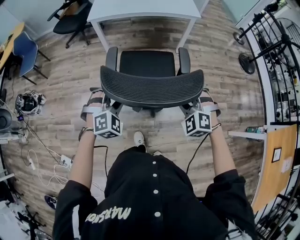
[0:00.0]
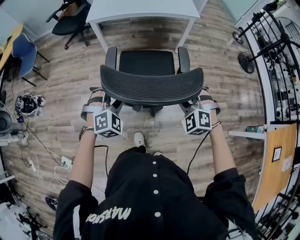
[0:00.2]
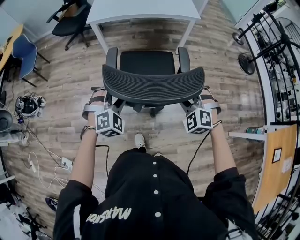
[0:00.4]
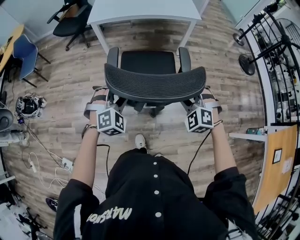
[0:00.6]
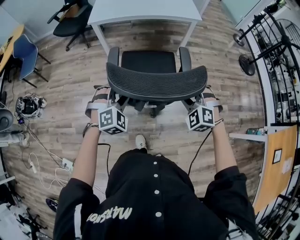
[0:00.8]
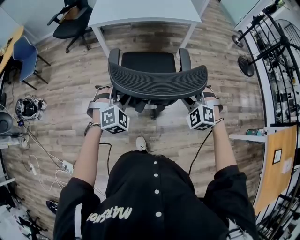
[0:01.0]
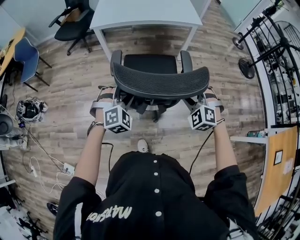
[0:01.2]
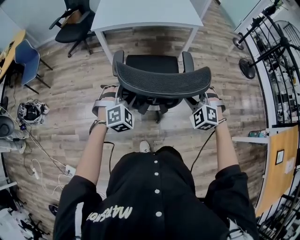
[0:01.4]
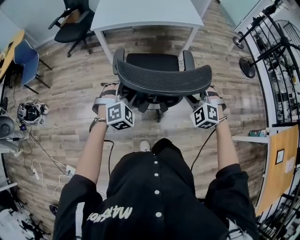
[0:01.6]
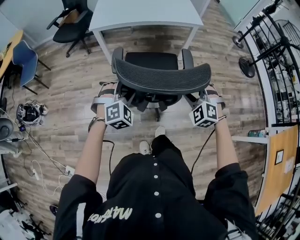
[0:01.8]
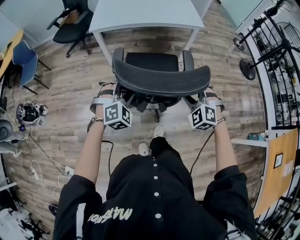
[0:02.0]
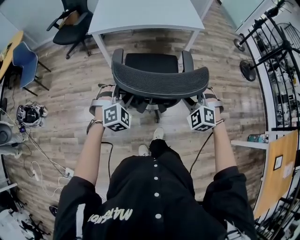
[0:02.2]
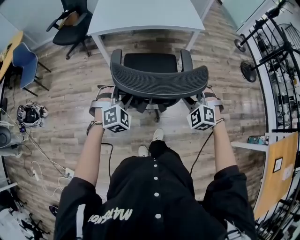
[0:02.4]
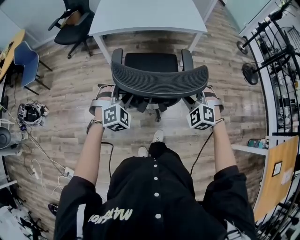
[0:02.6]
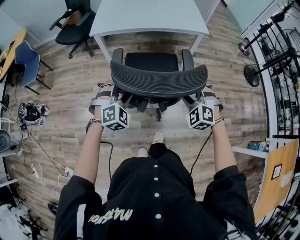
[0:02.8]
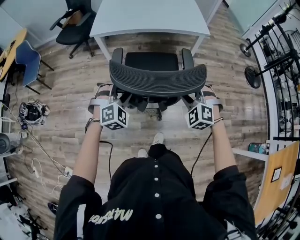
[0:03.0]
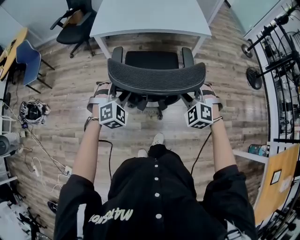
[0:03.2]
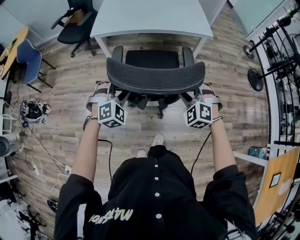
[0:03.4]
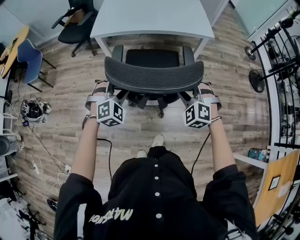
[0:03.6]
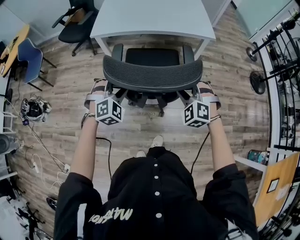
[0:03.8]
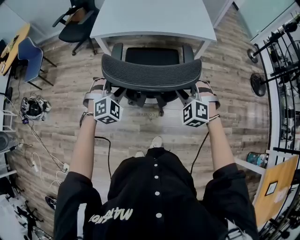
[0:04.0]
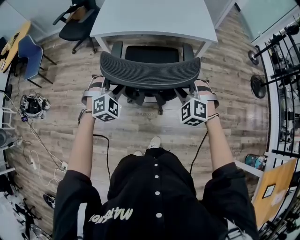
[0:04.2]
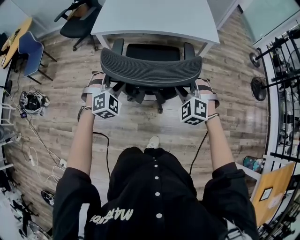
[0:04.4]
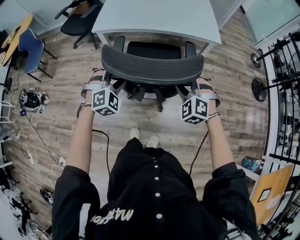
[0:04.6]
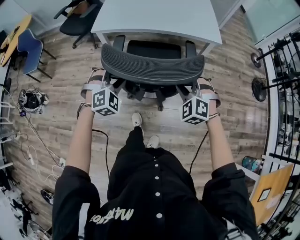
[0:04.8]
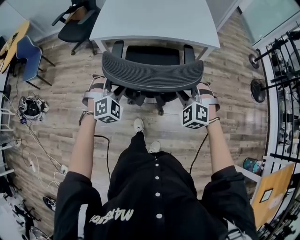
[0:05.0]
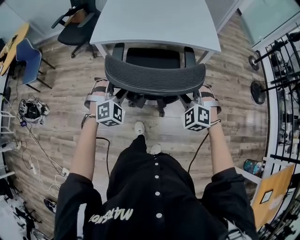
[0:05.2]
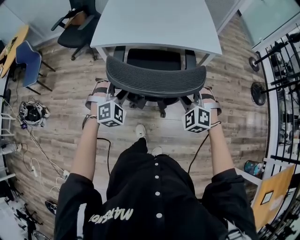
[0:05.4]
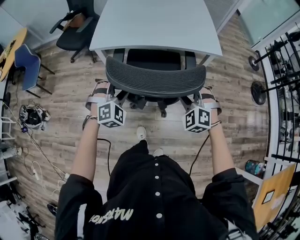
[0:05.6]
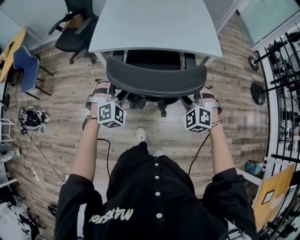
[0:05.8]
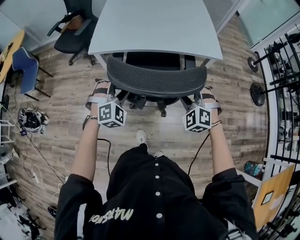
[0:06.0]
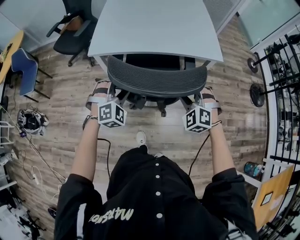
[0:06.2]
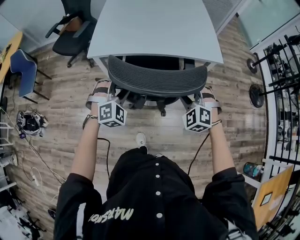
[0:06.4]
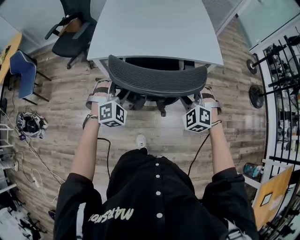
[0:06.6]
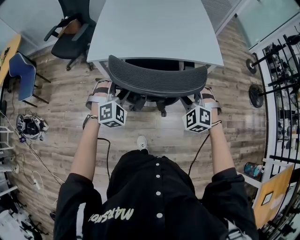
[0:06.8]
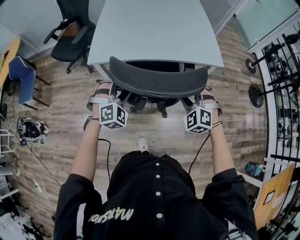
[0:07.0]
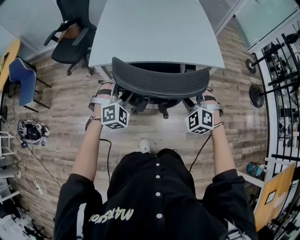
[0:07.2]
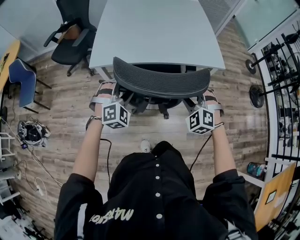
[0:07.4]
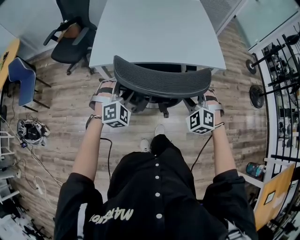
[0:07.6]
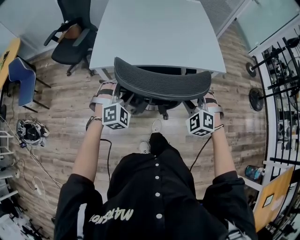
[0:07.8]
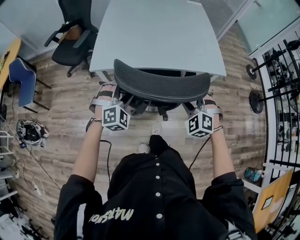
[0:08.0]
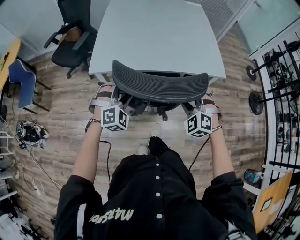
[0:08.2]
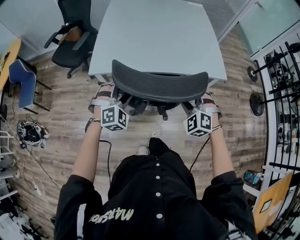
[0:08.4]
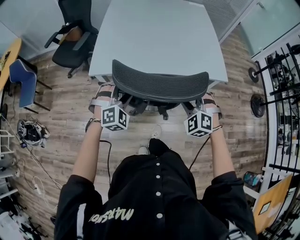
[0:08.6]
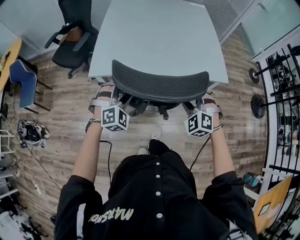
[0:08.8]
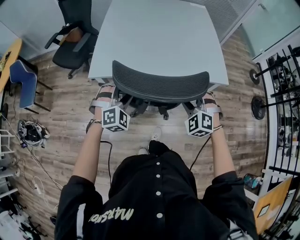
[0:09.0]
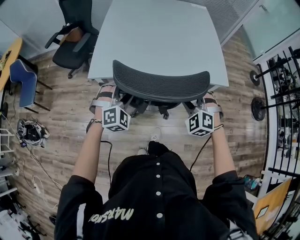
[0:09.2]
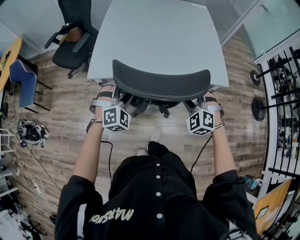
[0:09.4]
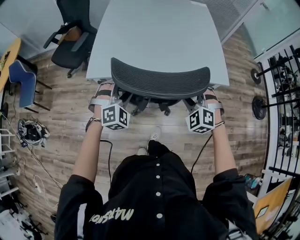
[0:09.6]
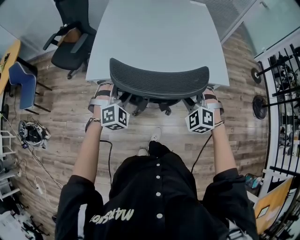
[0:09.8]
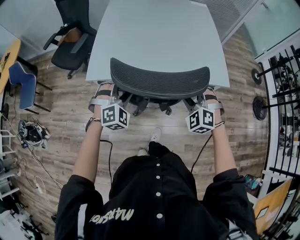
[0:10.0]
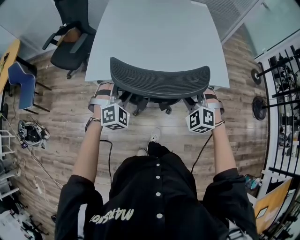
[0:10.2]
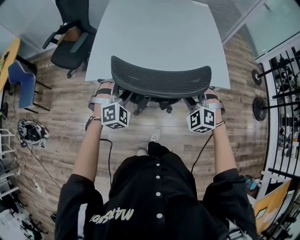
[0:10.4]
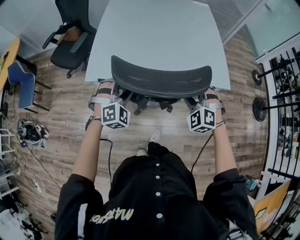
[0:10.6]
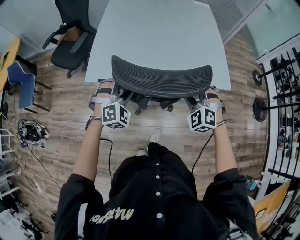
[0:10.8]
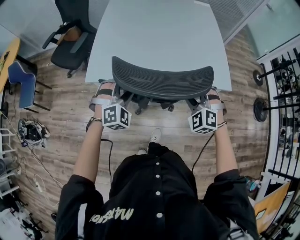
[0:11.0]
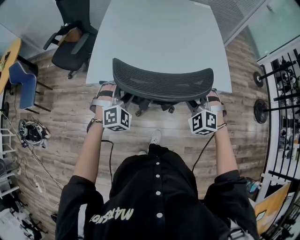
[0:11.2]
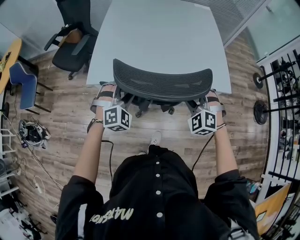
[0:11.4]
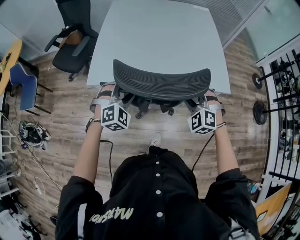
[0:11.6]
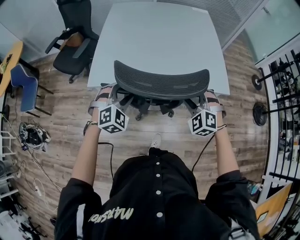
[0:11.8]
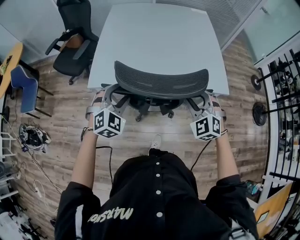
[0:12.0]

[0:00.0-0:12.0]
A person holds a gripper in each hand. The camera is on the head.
0:00.0 to 0:01.6: The two grippers go about 10 cm forward.
0:01.6 to 0:03.0: Both grippers move forward, some 10 cm.
0:03.0 to 0:04.4: The grippers both shift forward by about 10 cm.
0:04.4 to 0:06.0: The two grippers go roughly 10 cm forward.
0:06.0 to 0:07.6: The grippers both shift forward by about 5 cm.
0:07.6 to 0:09.0: The two grippers go some 5 cm forward.
0:09.0 to 0:10.4: The left gripper ends up roughly 5 cm from where it was. The right gripper is displaced forward by about 5 cm.
0:10.4 to 0:12.0: The grippers move only a little.

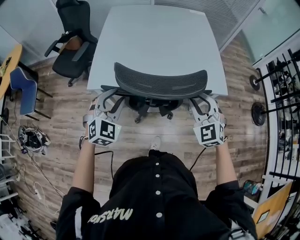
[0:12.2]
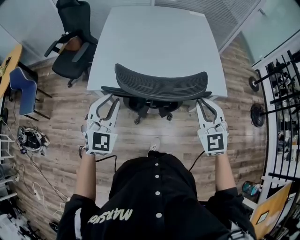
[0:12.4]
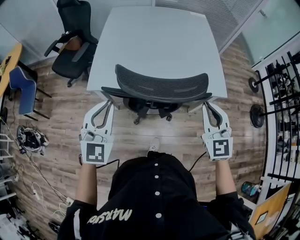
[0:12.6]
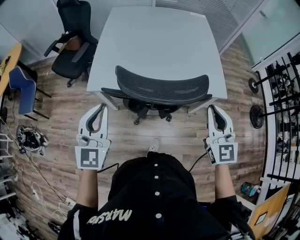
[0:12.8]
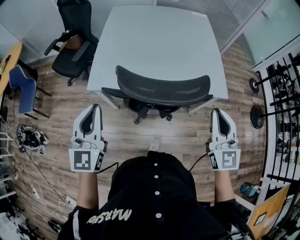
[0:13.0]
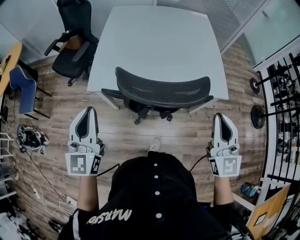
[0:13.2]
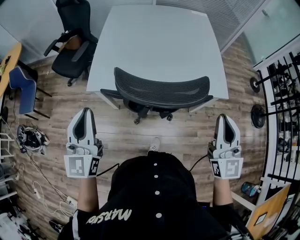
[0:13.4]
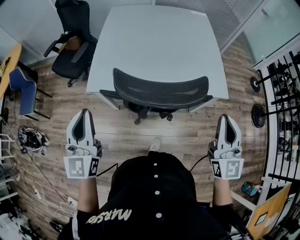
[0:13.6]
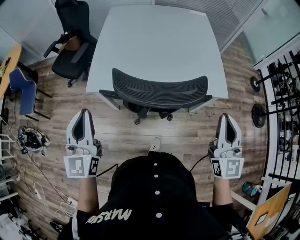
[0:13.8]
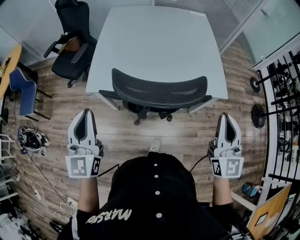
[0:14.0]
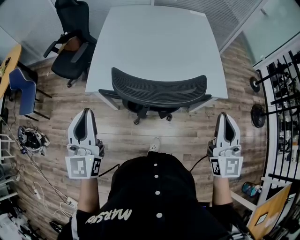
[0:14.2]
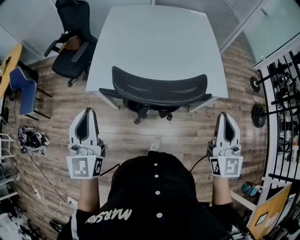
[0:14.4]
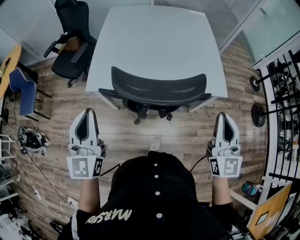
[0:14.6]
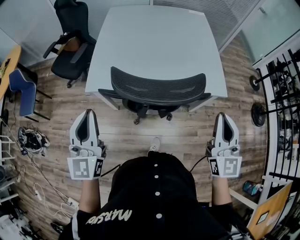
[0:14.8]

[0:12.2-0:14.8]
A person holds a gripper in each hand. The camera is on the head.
0:12.2 to 0:13.4: The left gripper heads upward, to the left and backward, covering approximately 15 cm, swivels some 50 degrees, and closes its fingers, while the right gripper travels upward, backward and to the right by roughly 15 cm, and swivels roughly 40 degrees.
0:13.4 to 0:14.8: There are only small adjustments of the grippers.

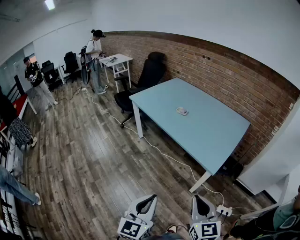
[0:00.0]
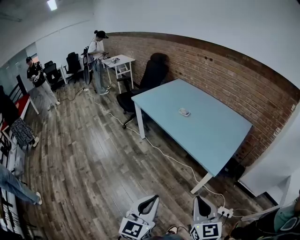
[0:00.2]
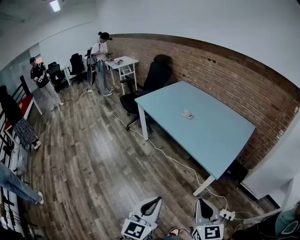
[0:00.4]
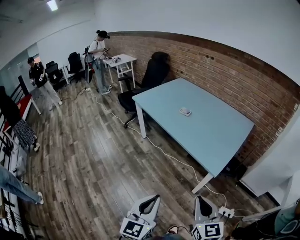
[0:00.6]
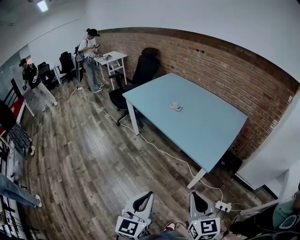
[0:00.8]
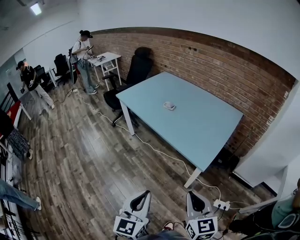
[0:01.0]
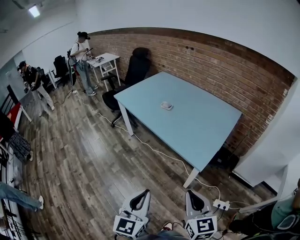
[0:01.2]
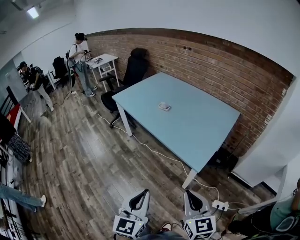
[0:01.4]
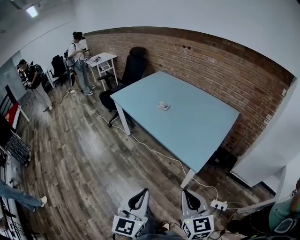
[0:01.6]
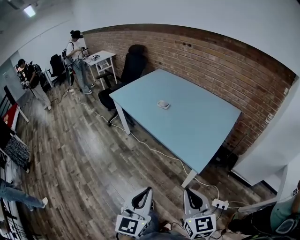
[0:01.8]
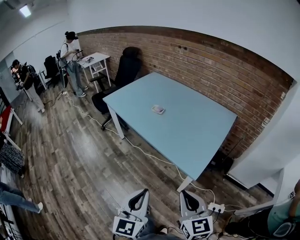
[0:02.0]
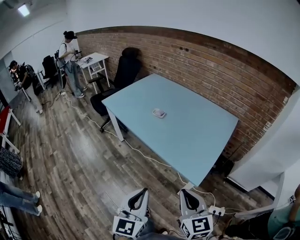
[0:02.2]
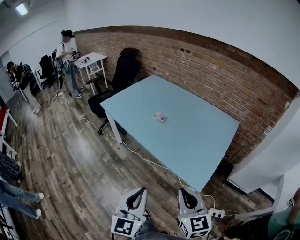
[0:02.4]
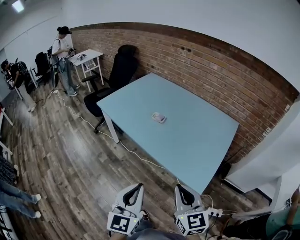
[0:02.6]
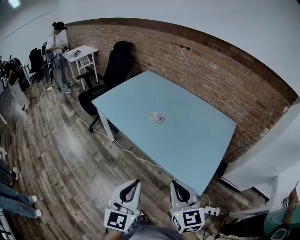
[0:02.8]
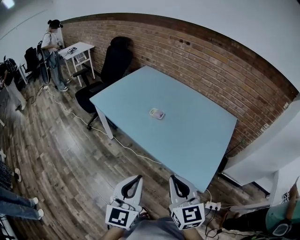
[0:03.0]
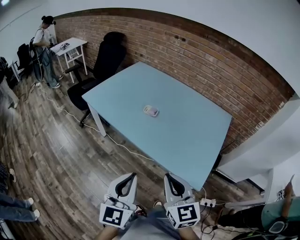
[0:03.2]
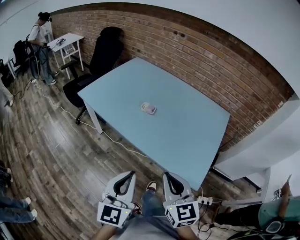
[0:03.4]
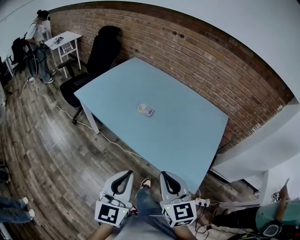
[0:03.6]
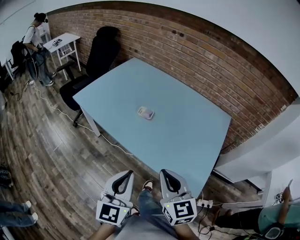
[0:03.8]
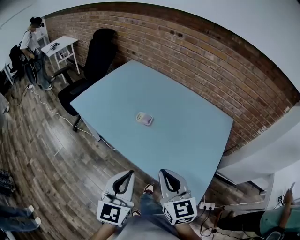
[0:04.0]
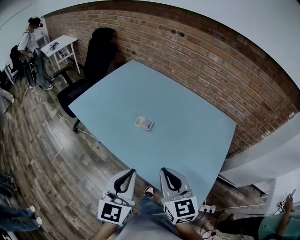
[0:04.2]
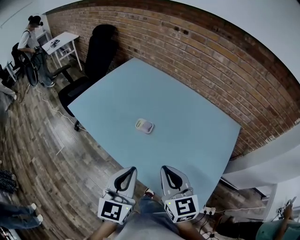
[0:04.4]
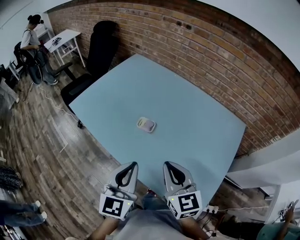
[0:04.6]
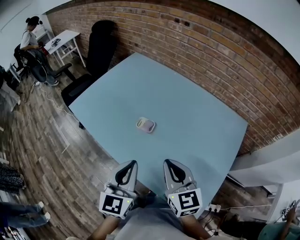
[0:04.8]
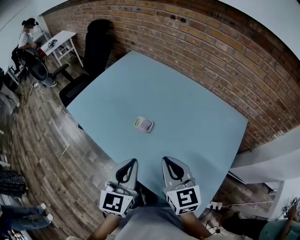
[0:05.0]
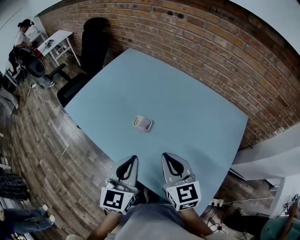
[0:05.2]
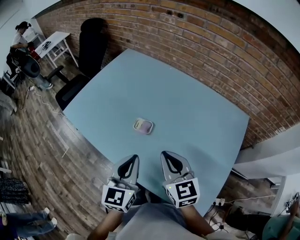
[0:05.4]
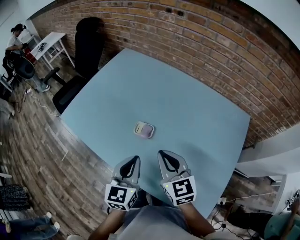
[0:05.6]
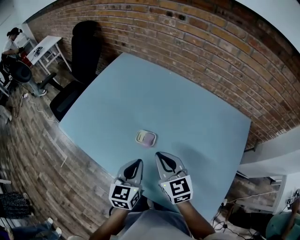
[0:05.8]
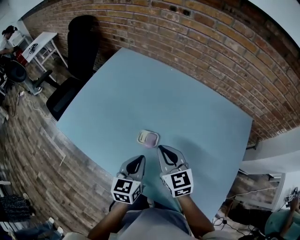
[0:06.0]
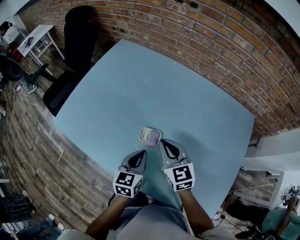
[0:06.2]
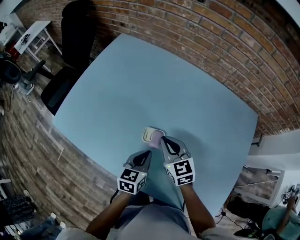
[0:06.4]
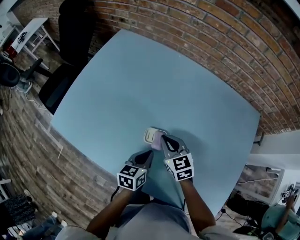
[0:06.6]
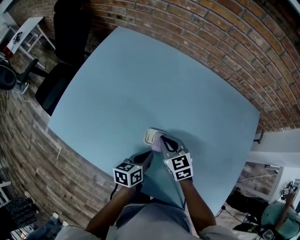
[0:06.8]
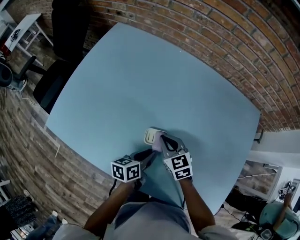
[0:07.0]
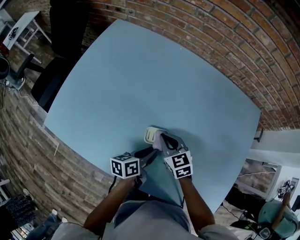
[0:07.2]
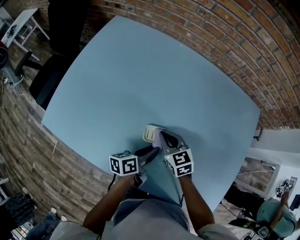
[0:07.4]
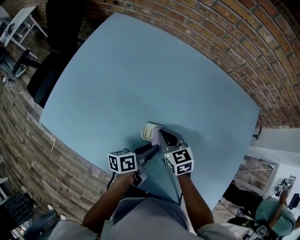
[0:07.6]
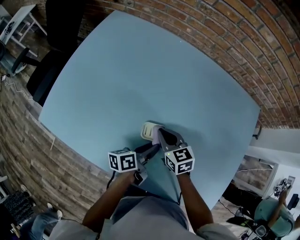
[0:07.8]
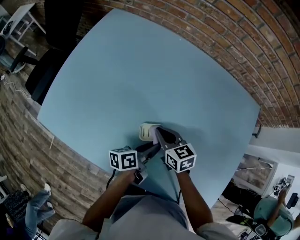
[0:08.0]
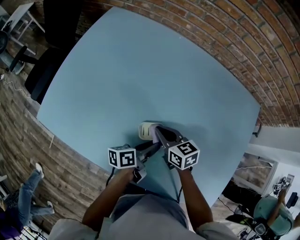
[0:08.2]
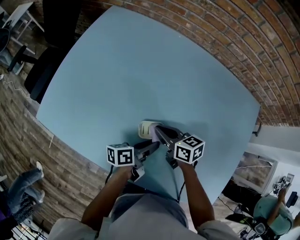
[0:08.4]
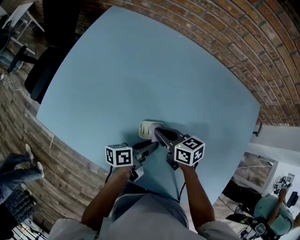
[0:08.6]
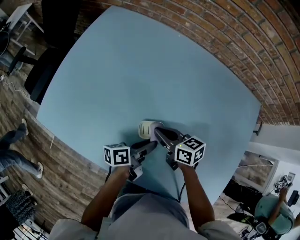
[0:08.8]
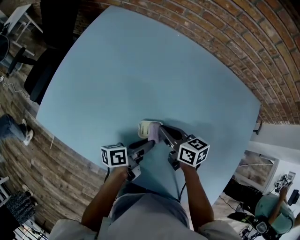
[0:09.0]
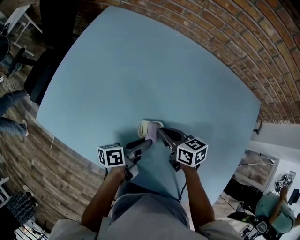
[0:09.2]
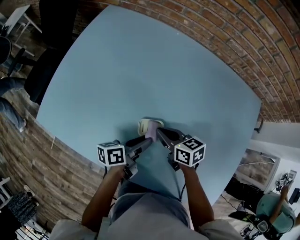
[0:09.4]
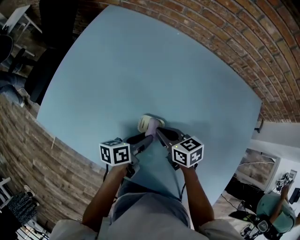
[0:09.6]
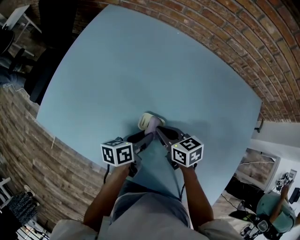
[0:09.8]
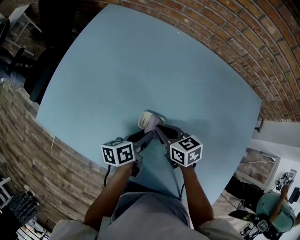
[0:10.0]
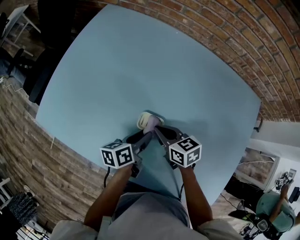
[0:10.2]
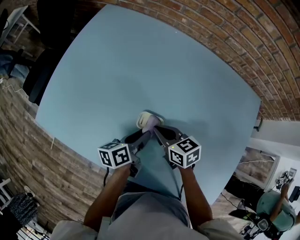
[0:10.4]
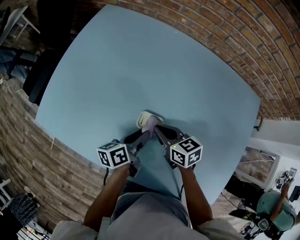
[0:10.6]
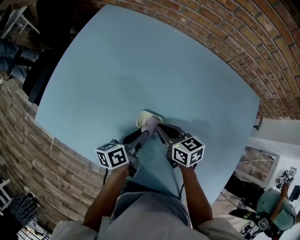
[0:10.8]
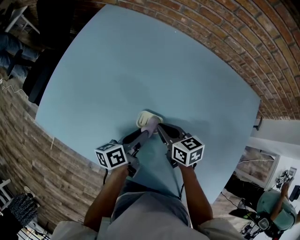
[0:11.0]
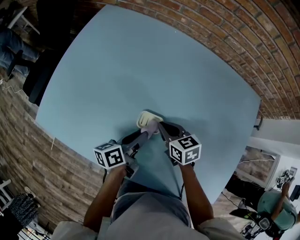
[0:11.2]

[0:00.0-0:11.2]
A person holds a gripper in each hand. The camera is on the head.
0:00.0 to 0:01.6: The grippers both shift to the right and forward by about 10 cm.
0:01.6 to 0:03.2: Both grippers travel together forward and to the left, approximately 30 cm.
0:03.2 to 0:04.8: Both grippers travel together forward, some 30 cm.
0:04.8 to 0:06.4: The left gripper goes about 30 cm downward and forward, and turns by some 30 degrees; the right gripper goes roughly 30 cm forward and downward.
0:06.4 to 0:08.0: Both grippers move downward, approximately 5 cm. The right gripper changes its angle by roughly 20 degrees. Meanwhile the left gripper twists approximately 40 degrees counterclockwise, seen from behind, and opens.
0:08.0 to 0:09.6: The grippers make only small movements.
0:09.6 to 0:11.2: The grippers move only a little.
